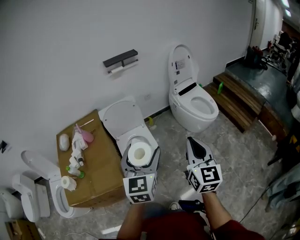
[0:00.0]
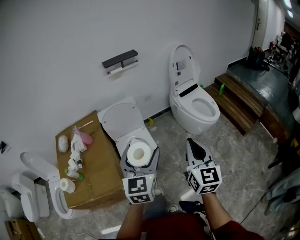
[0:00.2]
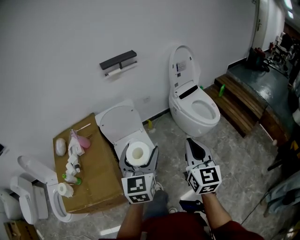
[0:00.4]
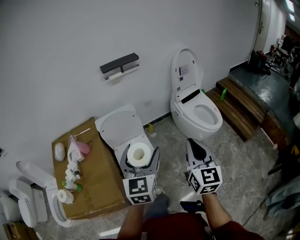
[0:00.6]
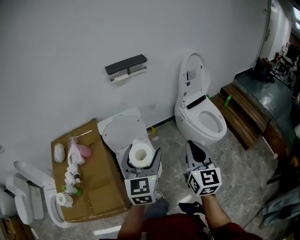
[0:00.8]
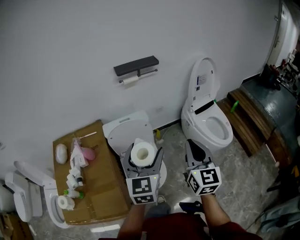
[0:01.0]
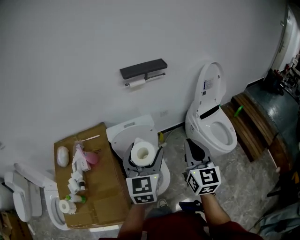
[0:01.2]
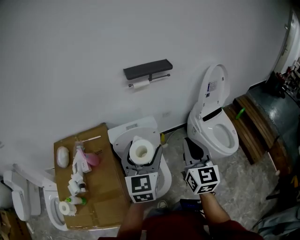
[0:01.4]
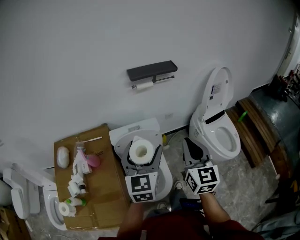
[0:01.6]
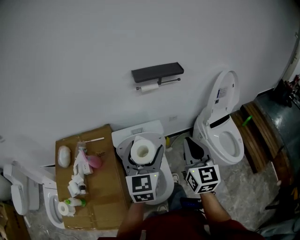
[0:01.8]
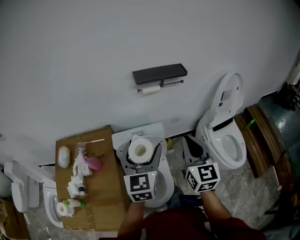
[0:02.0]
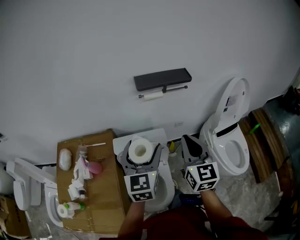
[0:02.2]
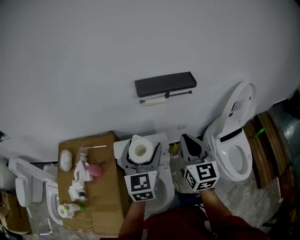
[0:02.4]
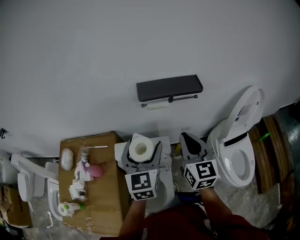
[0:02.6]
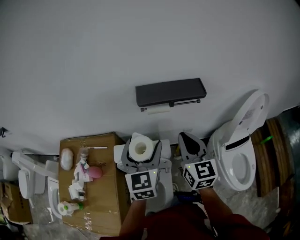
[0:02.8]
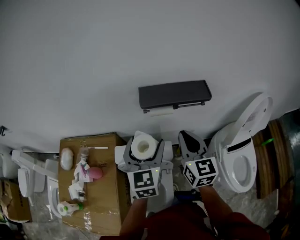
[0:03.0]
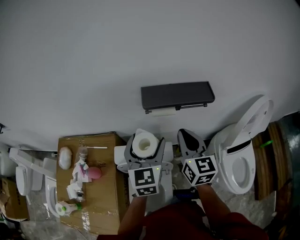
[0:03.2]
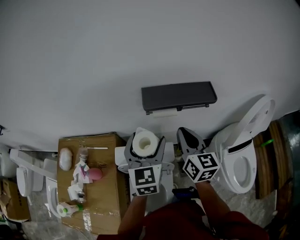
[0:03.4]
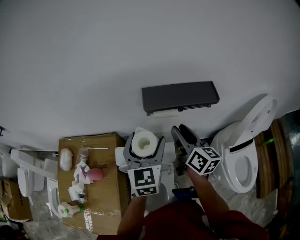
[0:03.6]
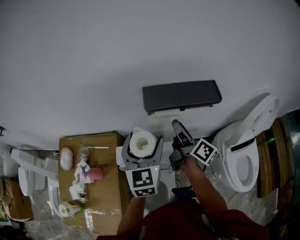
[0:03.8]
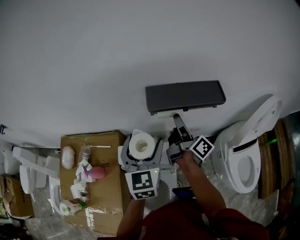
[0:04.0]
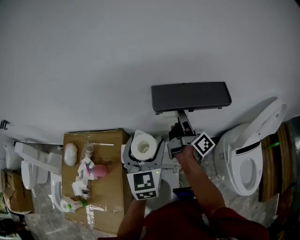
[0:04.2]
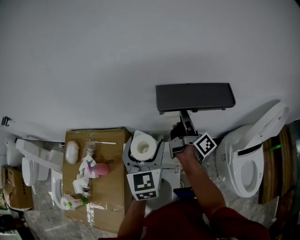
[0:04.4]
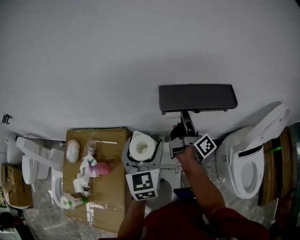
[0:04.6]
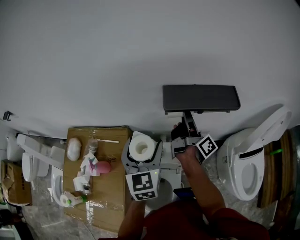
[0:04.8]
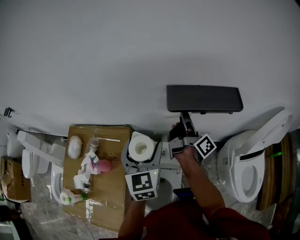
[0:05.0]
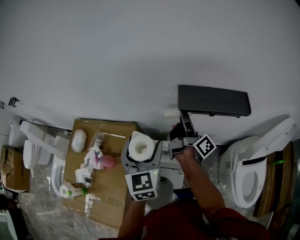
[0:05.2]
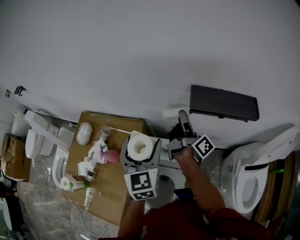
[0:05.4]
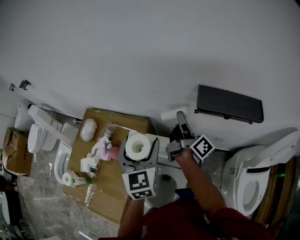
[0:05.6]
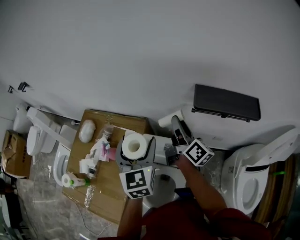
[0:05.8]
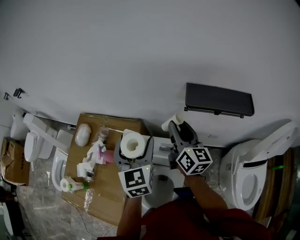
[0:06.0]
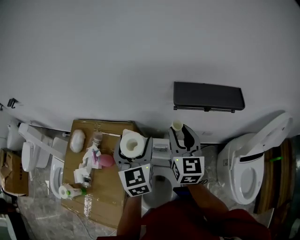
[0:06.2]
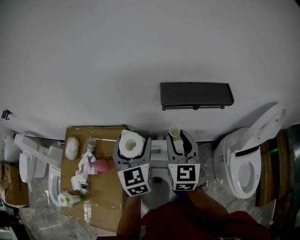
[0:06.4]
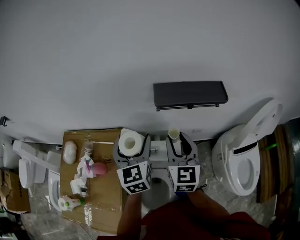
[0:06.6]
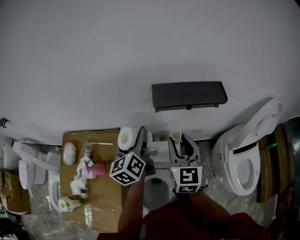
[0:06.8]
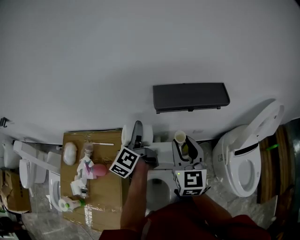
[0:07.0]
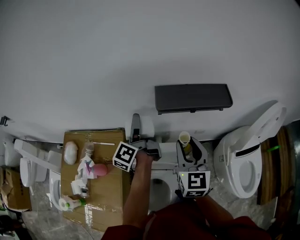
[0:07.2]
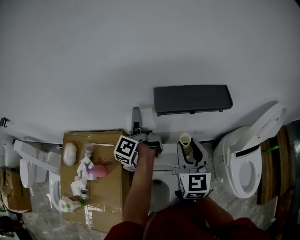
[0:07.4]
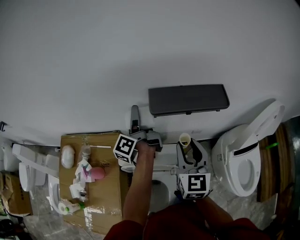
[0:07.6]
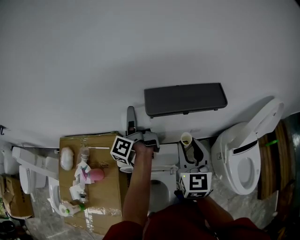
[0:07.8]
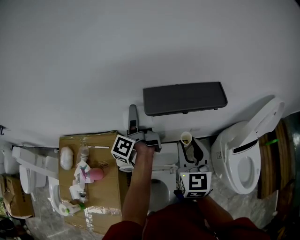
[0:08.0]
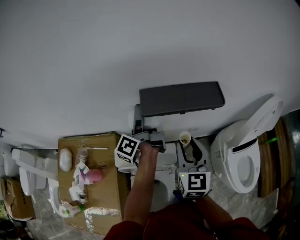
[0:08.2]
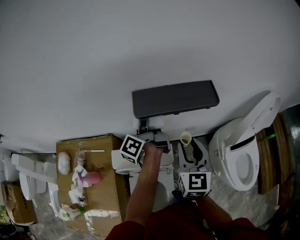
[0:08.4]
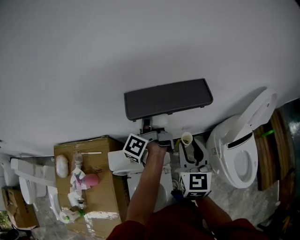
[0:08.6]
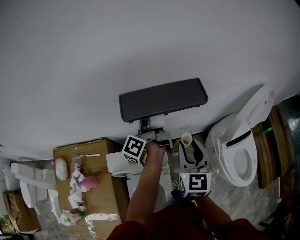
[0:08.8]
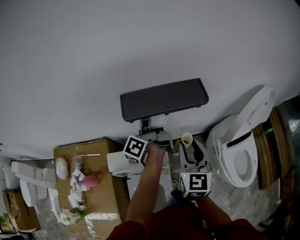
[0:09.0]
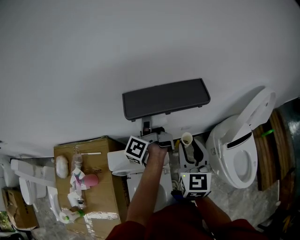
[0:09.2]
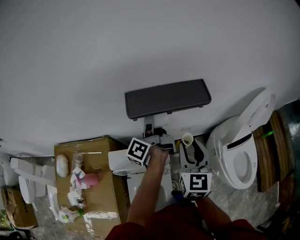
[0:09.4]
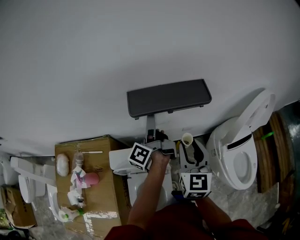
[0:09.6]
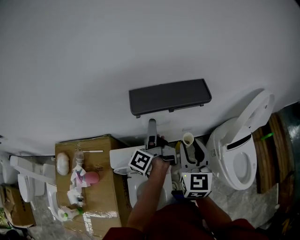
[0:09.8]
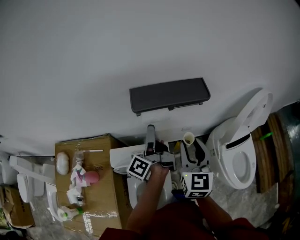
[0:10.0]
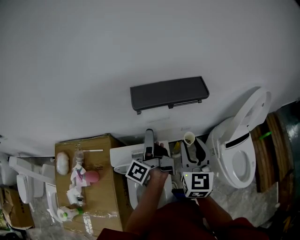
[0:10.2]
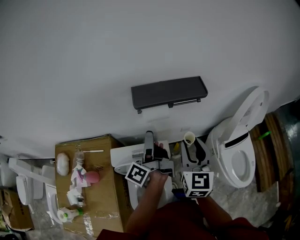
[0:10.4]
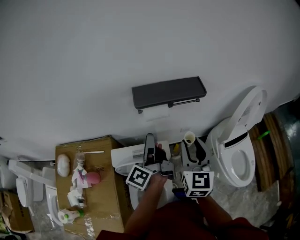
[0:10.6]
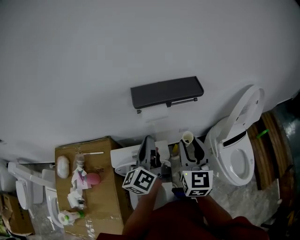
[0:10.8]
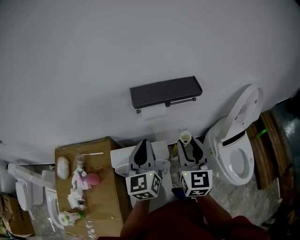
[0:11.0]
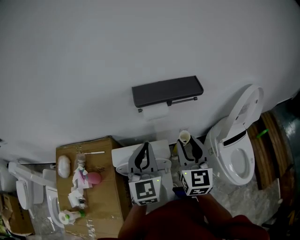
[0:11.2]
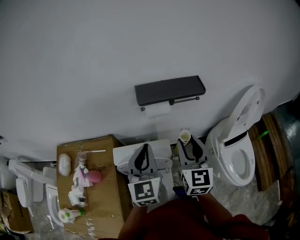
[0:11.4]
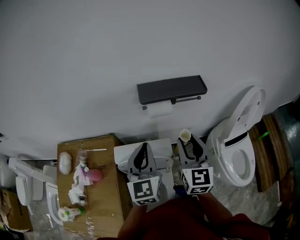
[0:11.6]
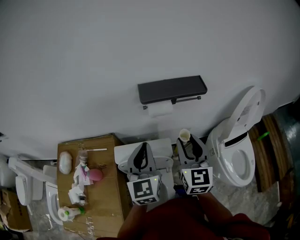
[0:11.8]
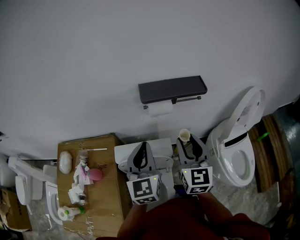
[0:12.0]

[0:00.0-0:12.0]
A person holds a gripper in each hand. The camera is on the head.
0:00.0 to 0:01.6: Both grippers are carried forward, approximately 50 cm.
0:01.6 to 0:03.0: Both grippers travel together forward, roughly 35 cm.
0:03.0 to 0:04.4: The left gripper is displaced to the left by about 5 cm; the right gripper heads forward and downward, covering some 15 cm, rolls clockwise, seen from behind, by approximately 80 degrees, and opens its fingers.
0:04.4 to 0:06.0: The two grippers go roughly 15 cm to the left. The right gripper twists approximately 50 degrees counterclockwise, seen from behind.
0:06.0 to 0:07.6: The left gripper goes roughly 20 cm forward and to the right, and rotates around the line of its fingers by some 80 degrees, counterclockwise from behind; the right gripper heads to the right and backward, covering approximately 15 cm, and turns by roughly 40 degrees.
0:07.6 to 0:09.0: The left gripper goes some 15 cm to the right; the right gripper goes roughly 10 cm to the right.
0:09.0 to 0:10.4: The left gripper goes approximately 15 cm backward. The right gripper is displaced backward by some 5 cm.
0:10.4 to 0:12.0: The right gripper shifts by roughly 5 cm, while the left gripper goes approximately 10 cm backward and upward, twists roughly 80 degrees clockwise, seen from behind, and closes.

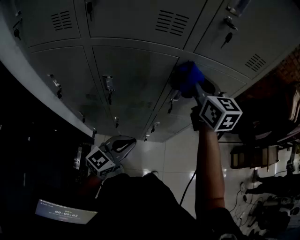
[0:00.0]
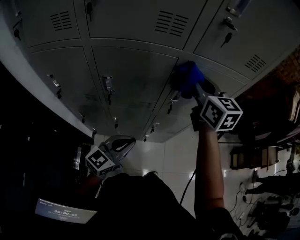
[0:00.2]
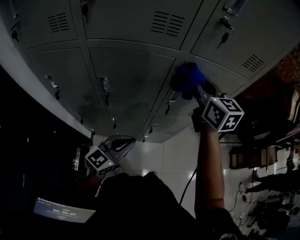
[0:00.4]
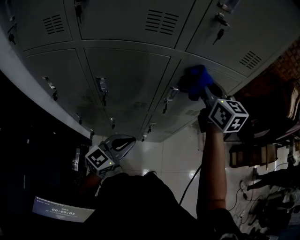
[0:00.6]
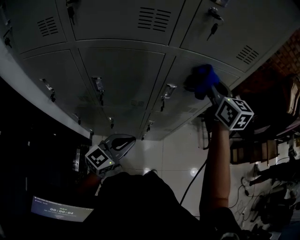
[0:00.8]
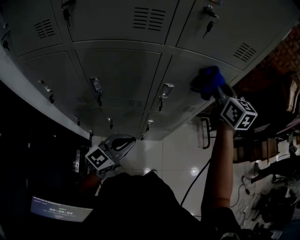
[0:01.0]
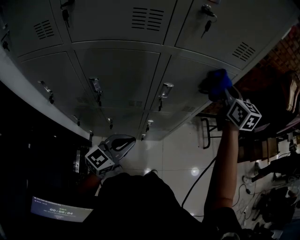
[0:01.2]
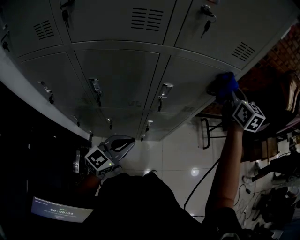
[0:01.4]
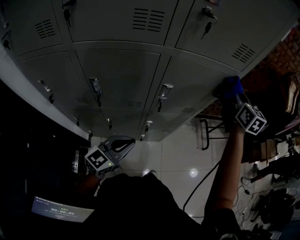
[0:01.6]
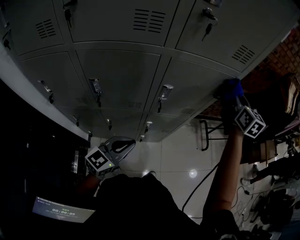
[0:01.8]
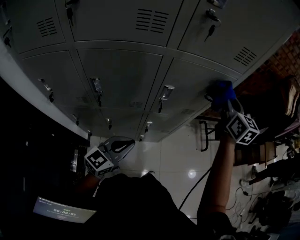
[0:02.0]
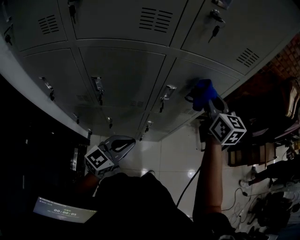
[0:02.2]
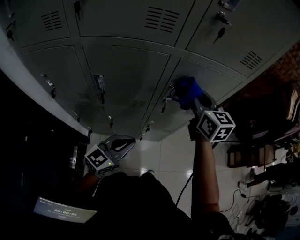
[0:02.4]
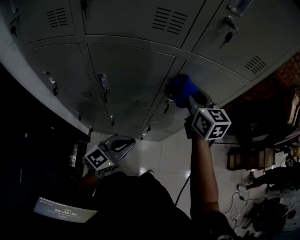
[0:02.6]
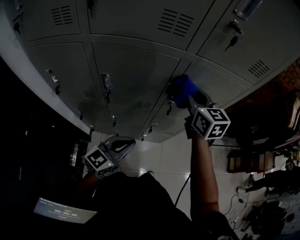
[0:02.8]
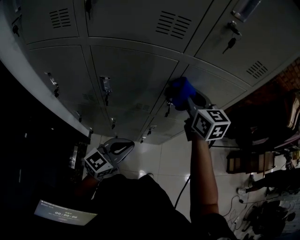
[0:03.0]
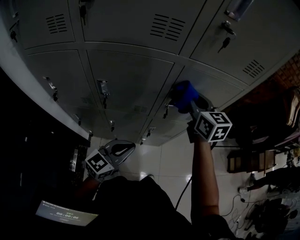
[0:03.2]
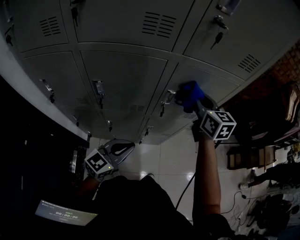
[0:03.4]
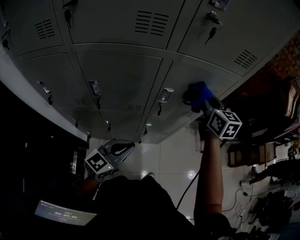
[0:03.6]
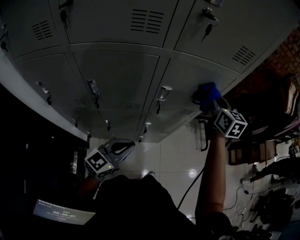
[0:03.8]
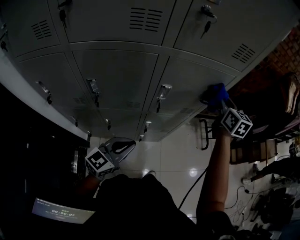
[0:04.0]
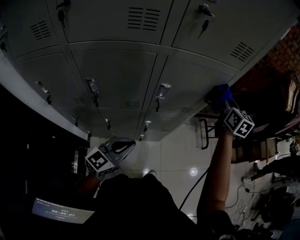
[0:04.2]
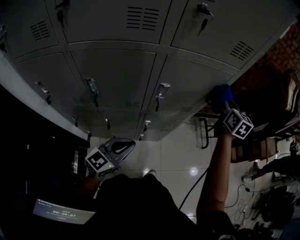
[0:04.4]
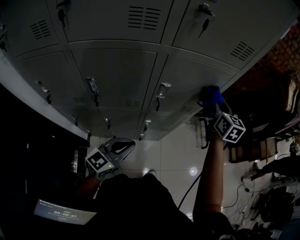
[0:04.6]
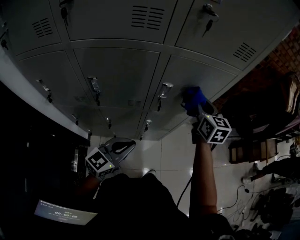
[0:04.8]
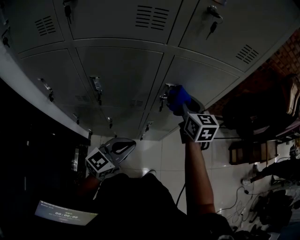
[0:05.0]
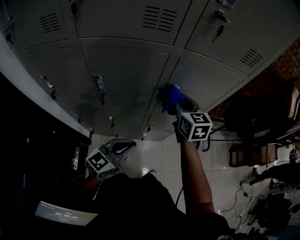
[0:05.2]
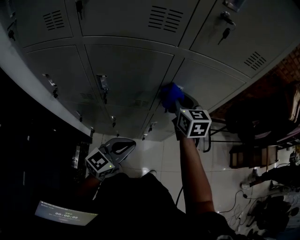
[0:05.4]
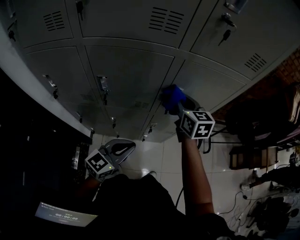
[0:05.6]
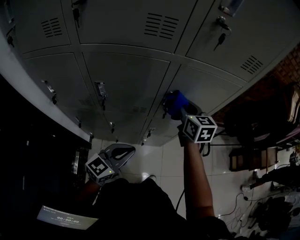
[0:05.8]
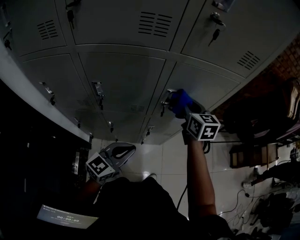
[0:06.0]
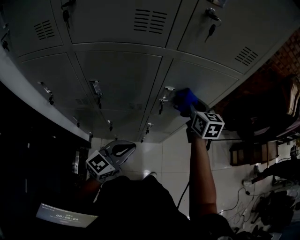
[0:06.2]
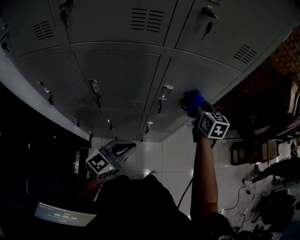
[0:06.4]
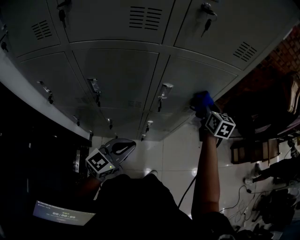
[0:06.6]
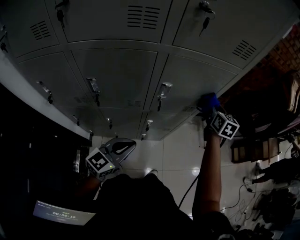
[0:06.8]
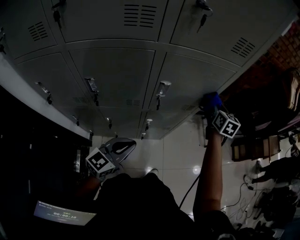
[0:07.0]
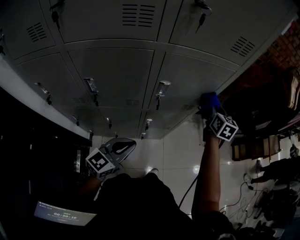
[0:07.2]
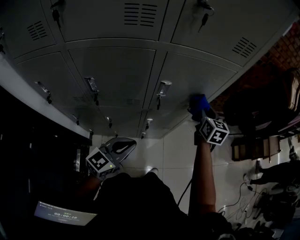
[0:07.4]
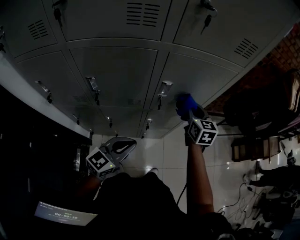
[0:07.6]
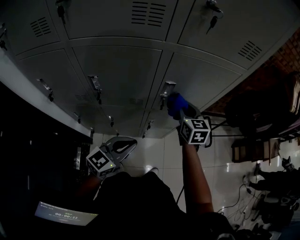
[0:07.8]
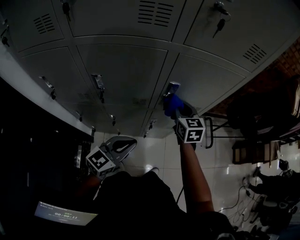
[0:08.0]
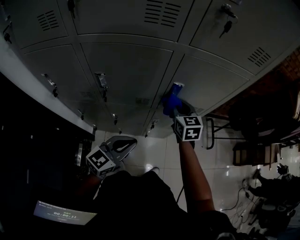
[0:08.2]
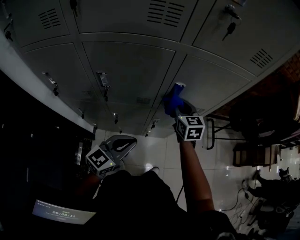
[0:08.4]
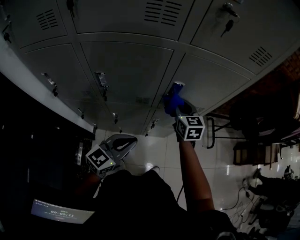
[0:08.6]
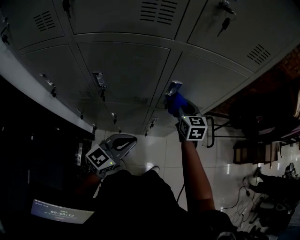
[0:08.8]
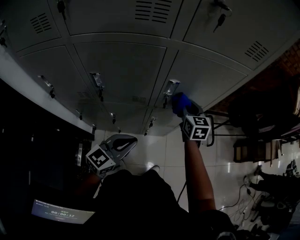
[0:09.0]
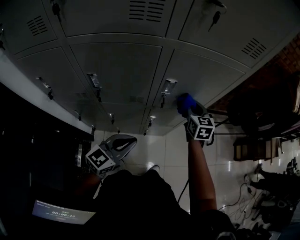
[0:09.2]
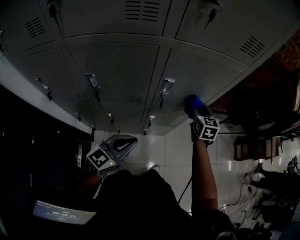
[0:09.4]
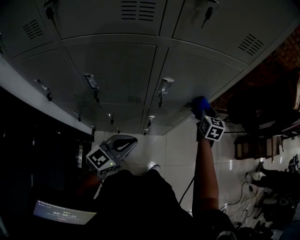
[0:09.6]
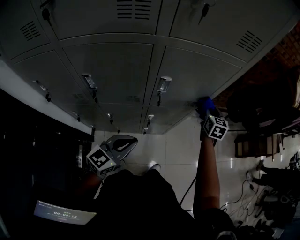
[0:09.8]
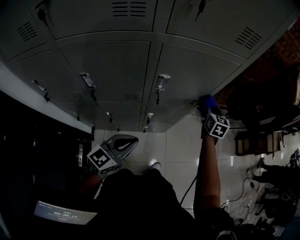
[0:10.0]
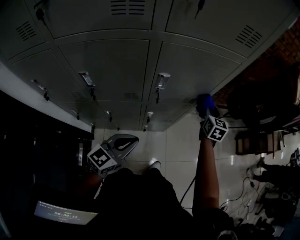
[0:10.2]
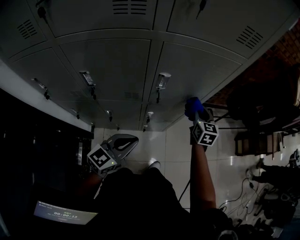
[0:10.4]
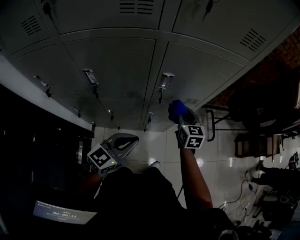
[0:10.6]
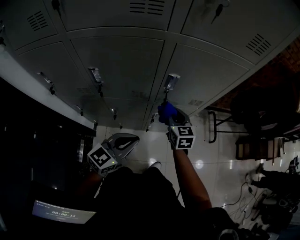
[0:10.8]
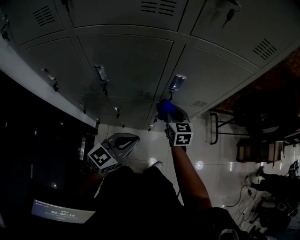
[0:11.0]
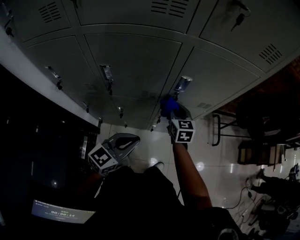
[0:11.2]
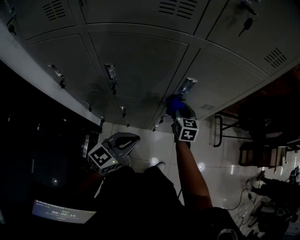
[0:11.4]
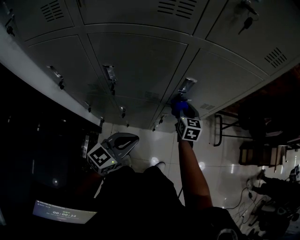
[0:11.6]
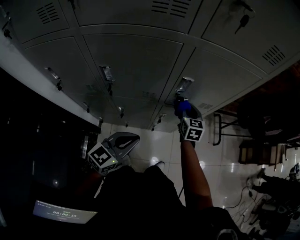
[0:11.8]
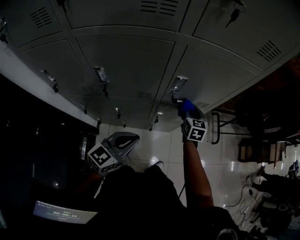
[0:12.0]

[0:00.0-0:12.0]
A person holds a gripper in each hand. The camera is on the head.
0:00.0 to 0:01.6: The right gripper shifts approximately 25 cm to the right, and swivels approximately 20 degrees.
0:01.6 to 0:03.0: The right gripper shifts approximately 25 cm to the left, and swivels some 20 degrees.
0:03.0 to 0:04.4: The right gripper moves to the right, about 25 cm, and rotates approximately 30 degrees.
0:04.4 to 0:06.0: The right gripper is displaced to the left by about 20 cm, and changes its angle by some 20 degrees.
0:06.0 to 0:07.6: The right gripper moves to the right and downward, some 10 cm.
0:09.0 to 0:10.4: The right gripper heads to the right, covering some 10 cm.
0:10.4 to 0:12.0: The right gripper goes about 10 cm to the left and downward.
